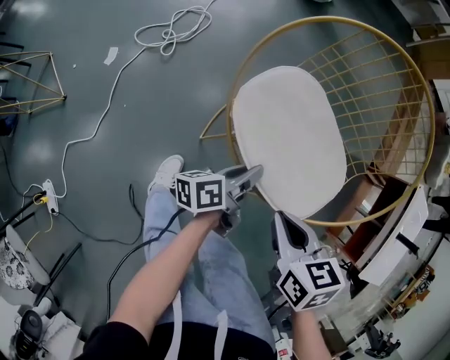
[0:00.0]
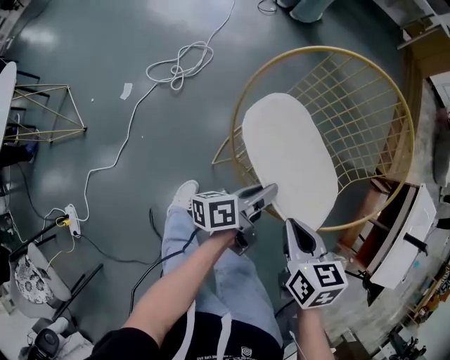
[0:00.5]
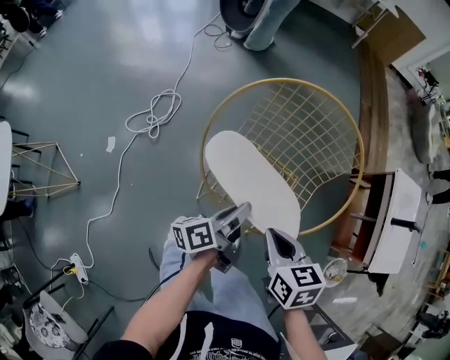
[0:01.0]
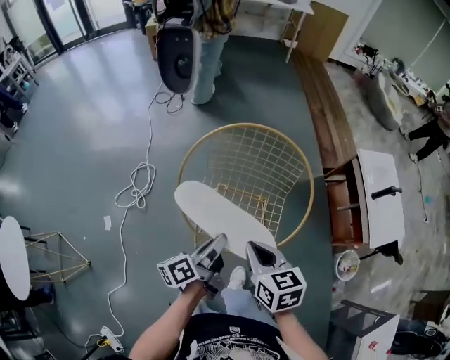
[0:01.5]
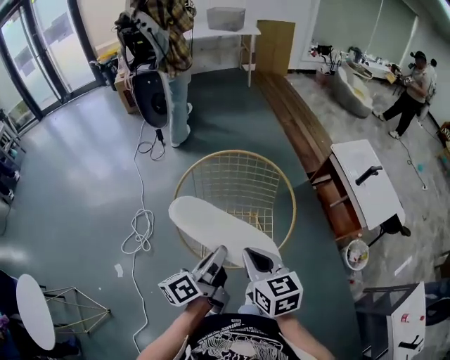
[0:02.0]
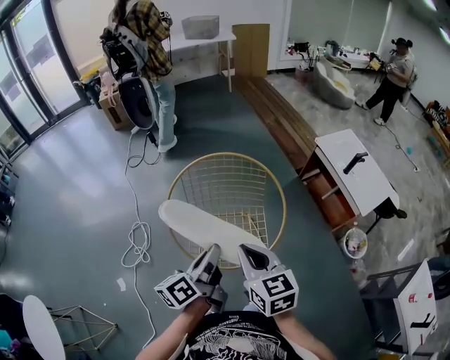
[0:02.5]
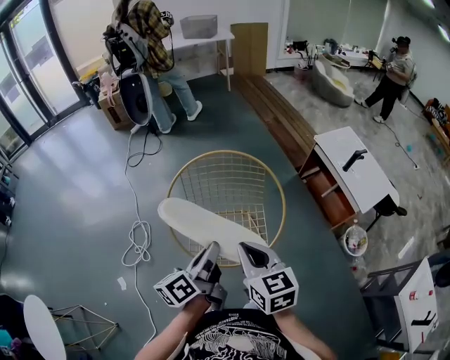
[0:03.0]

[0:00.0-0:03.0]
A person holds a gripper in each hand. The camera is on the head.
0:00.0 to 0:01.5: Both grippers move upward, approximately 20 cm. The right gripper turns by about 30 degrees.
0:01.5 to 0:03.0: The two grippers go about 10 cm upward. The right gripper rotates about 20 degrees.

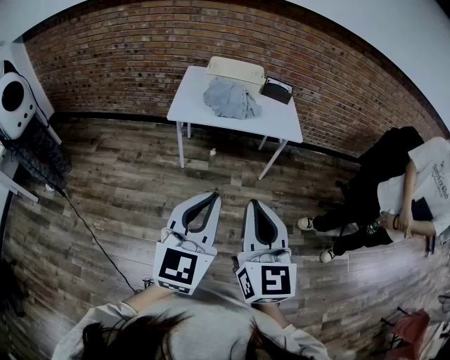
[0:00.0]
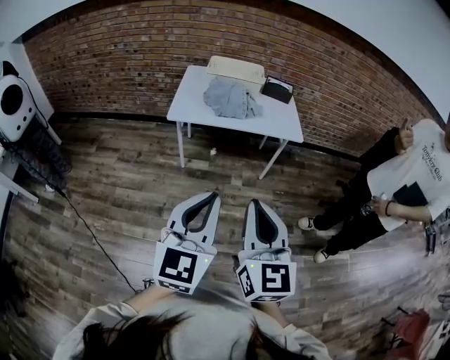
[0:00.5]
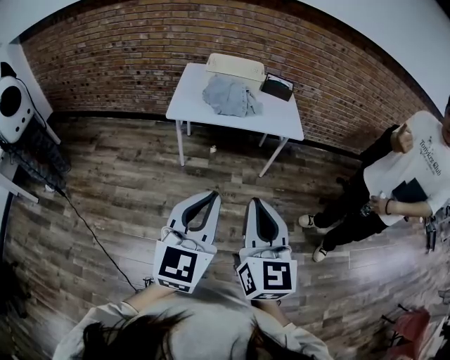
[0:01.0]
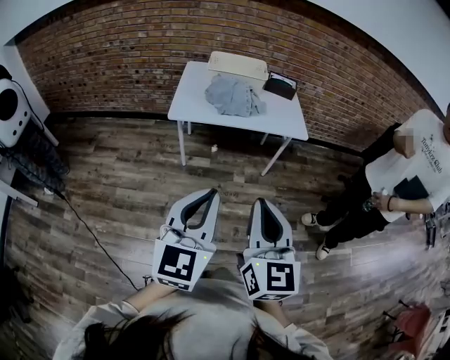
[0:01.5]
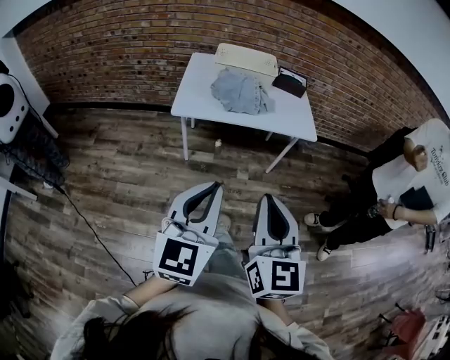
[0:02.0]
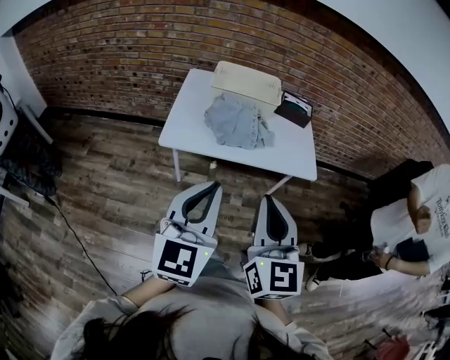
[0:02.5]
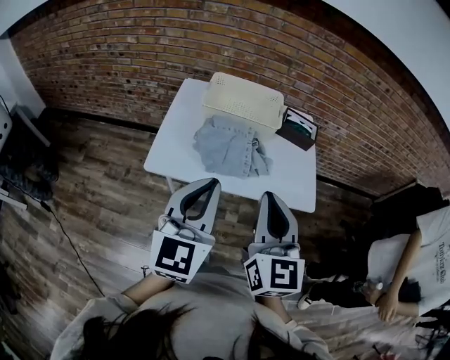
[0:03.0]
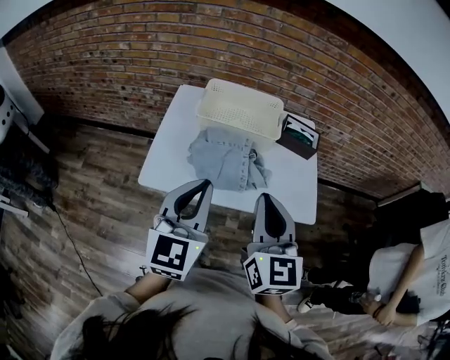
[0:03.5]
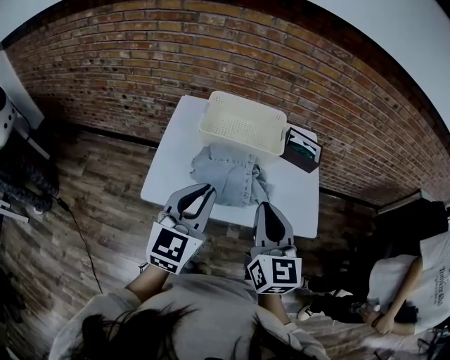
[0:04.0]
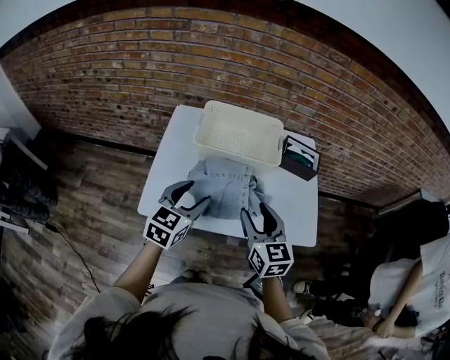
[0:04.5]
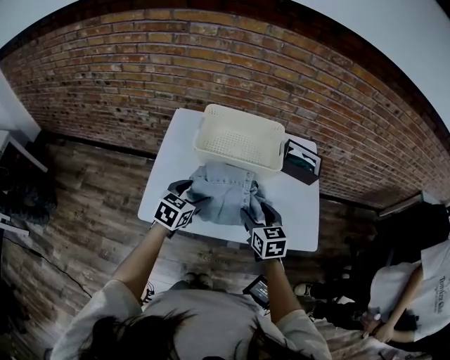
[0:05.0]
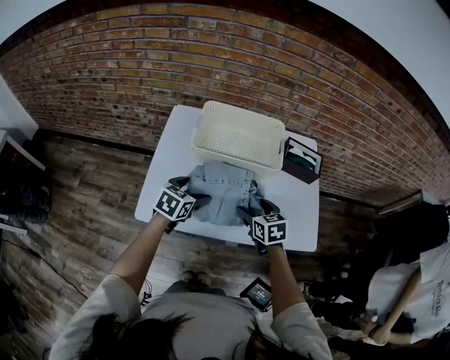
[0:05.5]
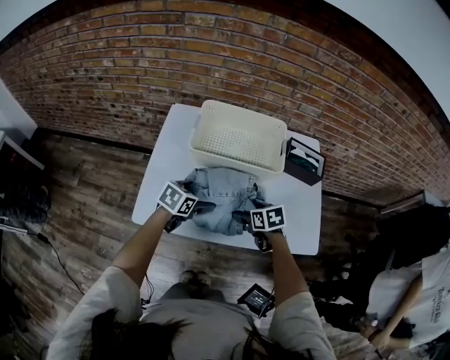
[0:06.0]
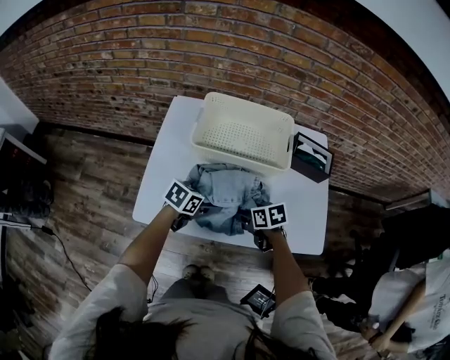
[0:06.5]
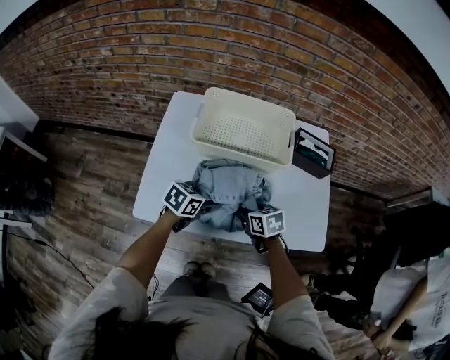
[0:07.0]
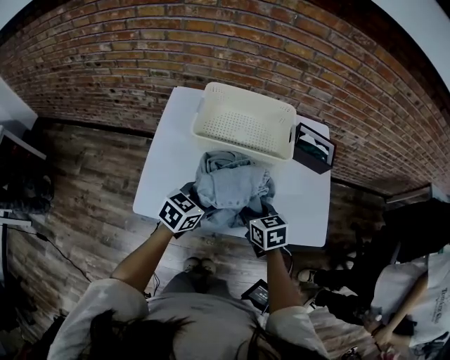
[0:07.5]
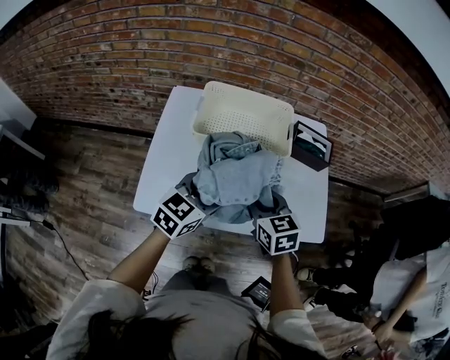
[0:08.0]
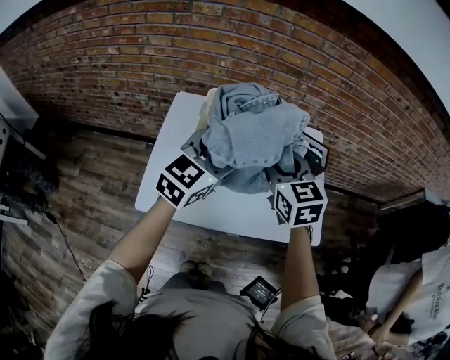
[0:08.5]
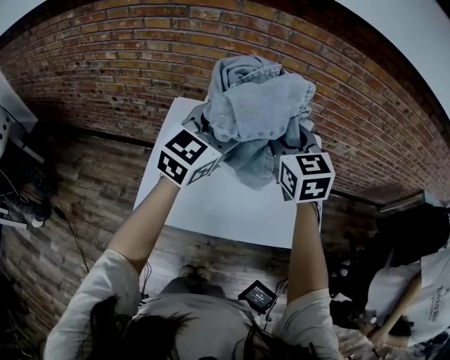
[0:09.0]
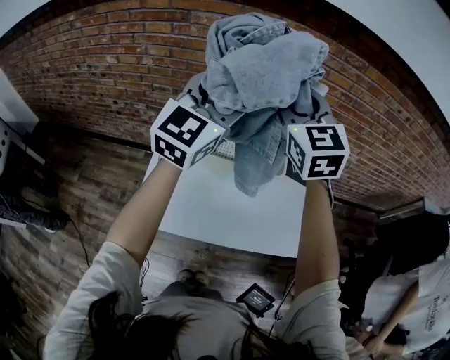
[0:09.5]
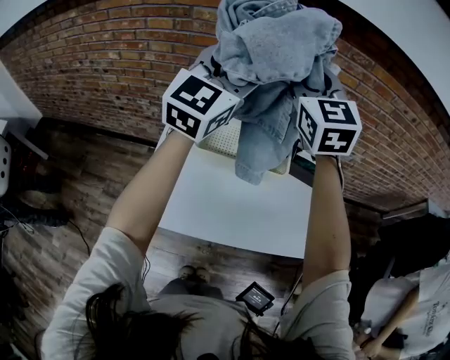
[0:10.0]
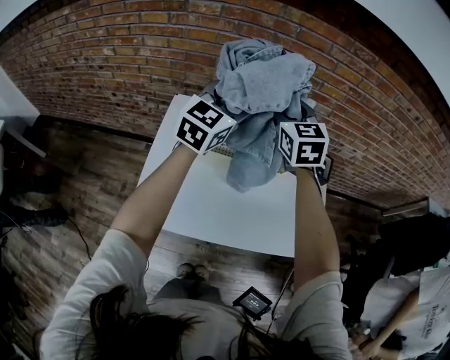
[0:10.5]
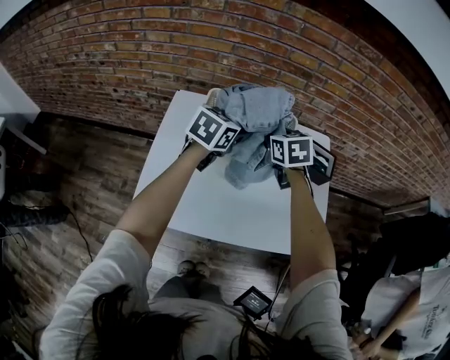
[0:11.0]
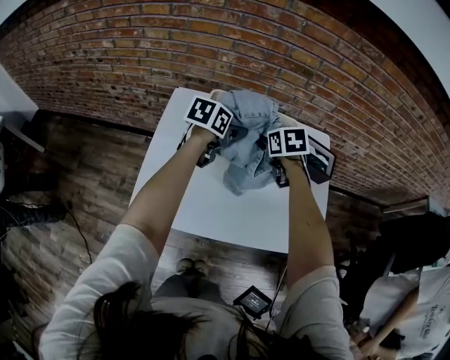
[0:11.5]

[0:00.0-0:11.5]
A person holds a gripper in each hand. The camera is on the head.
0:00.0 to 0:02.0: The left gripper travels forward and to the left by roughly 10 cm. The right gripper heads forward, covering approximately 10 cm.
0:02.0 to 0:04.0: Both grippers are carried forward, roughly 50 cm.
0:04.0 to 0:06.0: The grippers both shift downward and forward by some 30 cm. The right gripper angles its fingers downward, by some 50 degrees, and opens. The left gripper points its fingers approximately 40 degrees further downward, and opens up.
0:06.0 to 0:07.5: The left gripper shifts by some 5 cm, and closes up; the right gripper shifts by approximately 5 cm, and closes up.
0:07.5 to 0:09.5: The right gripper moves upward and forward, some 40 cm, and tips its fingers upward by about 40 degrees; the left gripper moves upward, some 40 cm, and angles its fingers upward, by approximately 40 degrees.
0:09.5 to 0:11.5: The two grippers go roughly 30 cm downward. The right gripper tips its fingers downward by roughly 50 degrees; the left gripper tips its fingers downward by approximately 50 degrees.

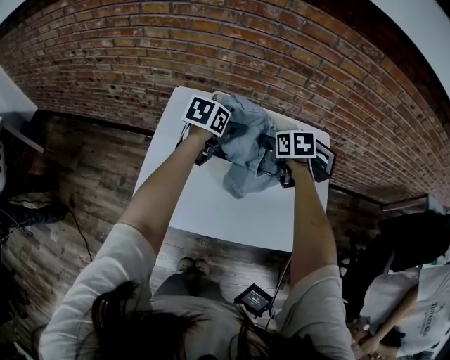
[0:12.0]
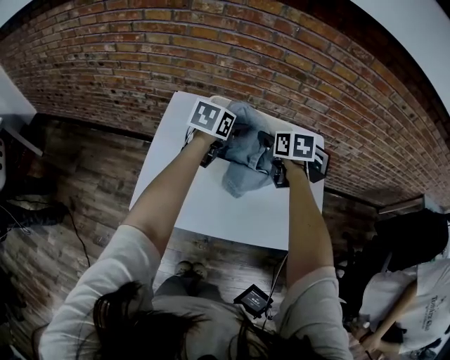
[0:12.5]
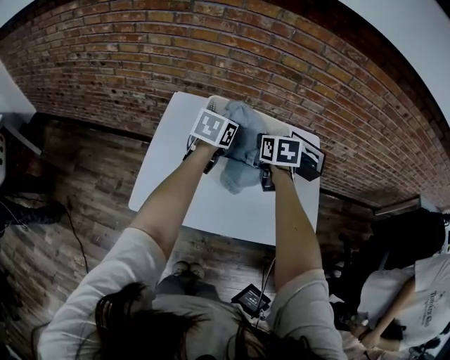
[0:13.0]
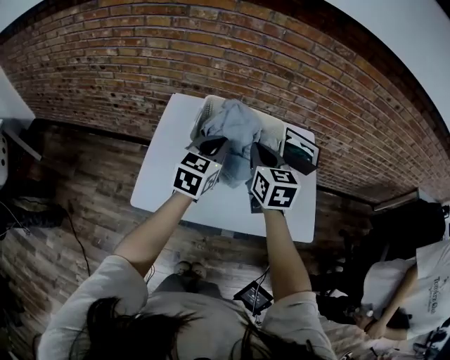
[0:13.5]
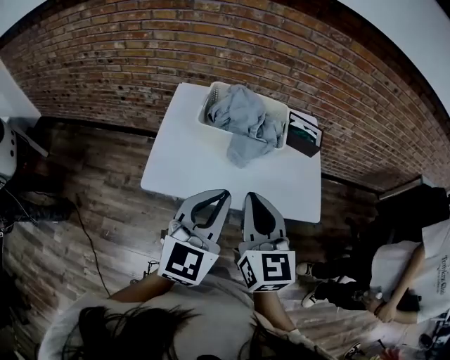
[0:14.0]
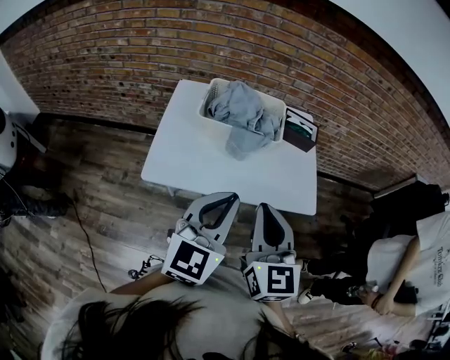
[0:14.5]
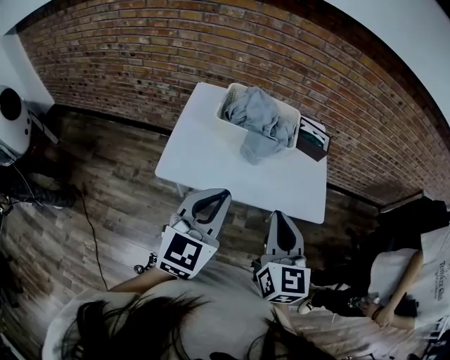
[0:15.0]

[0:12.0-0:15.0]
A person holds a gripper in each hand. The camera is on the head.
0:12.0 to 0:13.5: The grippers both shift backward and upward by approximately 20 cm. The right gripper tilts its fingers approximately 30 degrees upward, and closes up, while the left gripper turns by approximately 30 degrees, and closes up.
0:13.5 to 0:15.0: Both grippers move backward, approximately 30 cm.

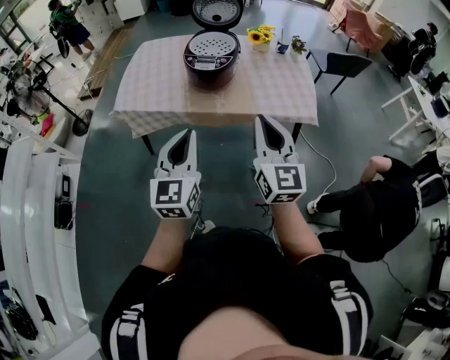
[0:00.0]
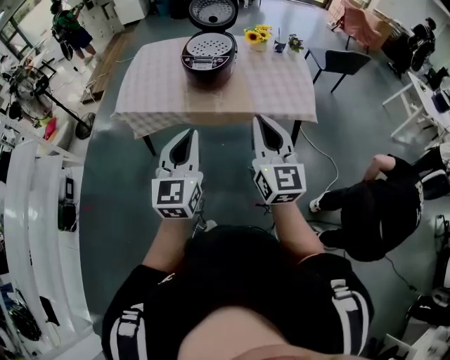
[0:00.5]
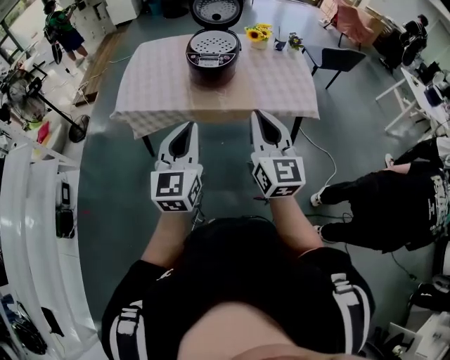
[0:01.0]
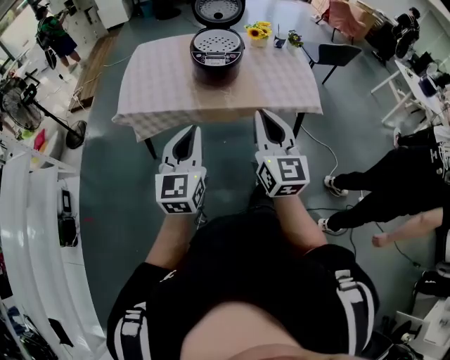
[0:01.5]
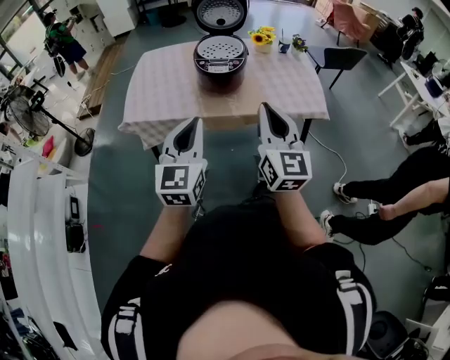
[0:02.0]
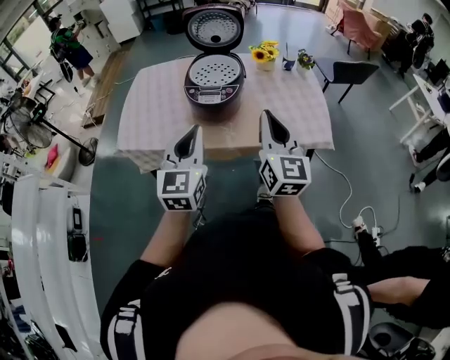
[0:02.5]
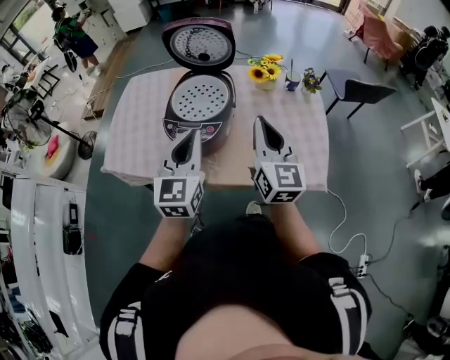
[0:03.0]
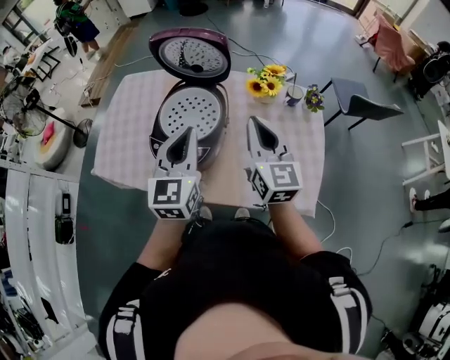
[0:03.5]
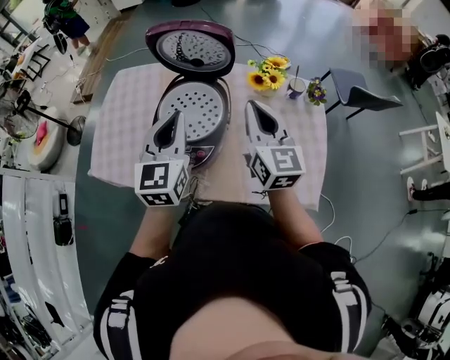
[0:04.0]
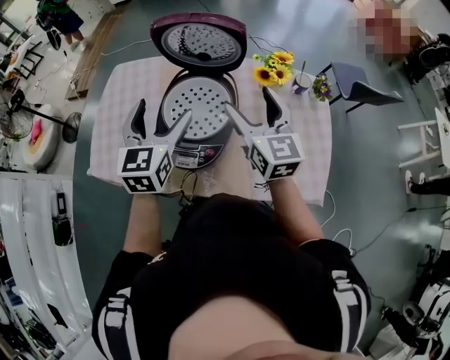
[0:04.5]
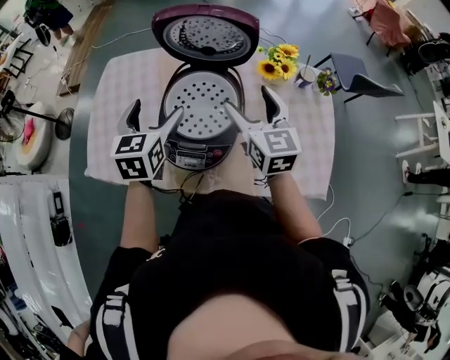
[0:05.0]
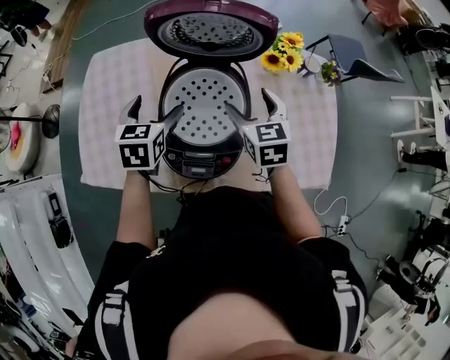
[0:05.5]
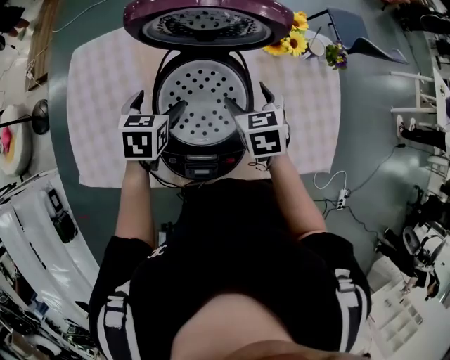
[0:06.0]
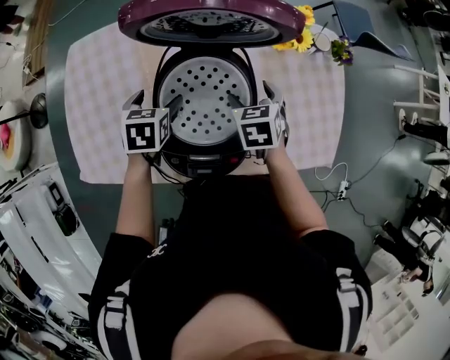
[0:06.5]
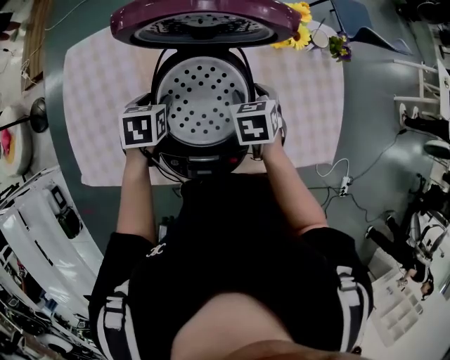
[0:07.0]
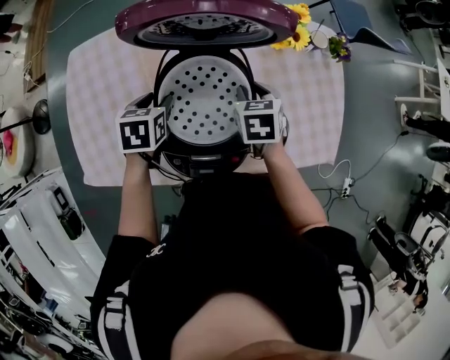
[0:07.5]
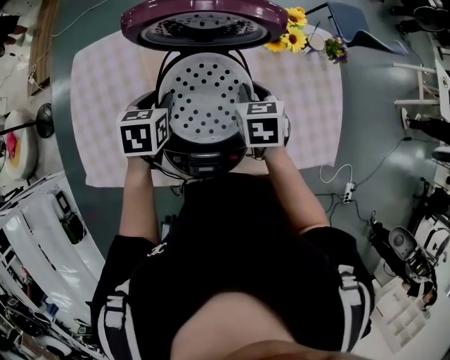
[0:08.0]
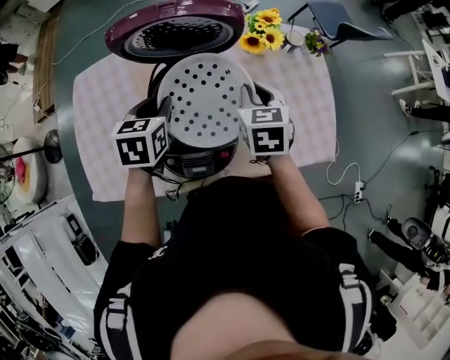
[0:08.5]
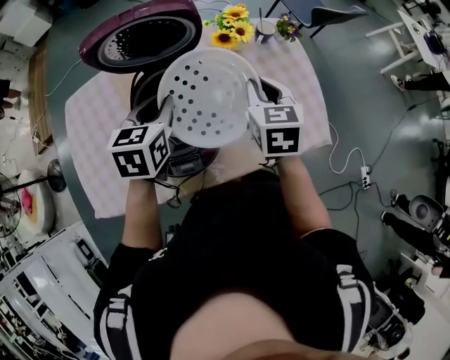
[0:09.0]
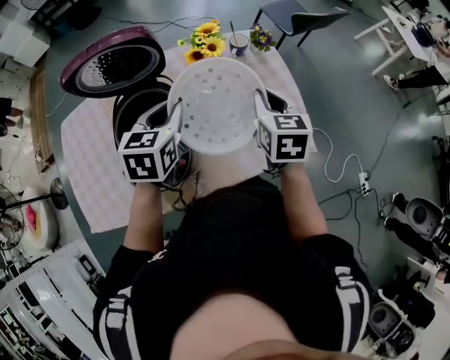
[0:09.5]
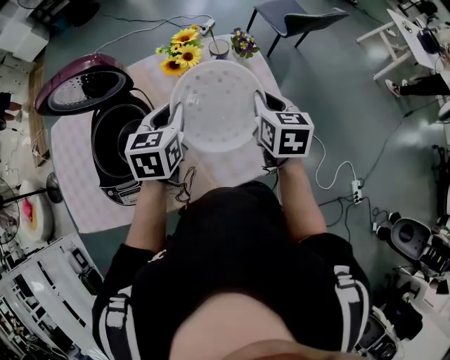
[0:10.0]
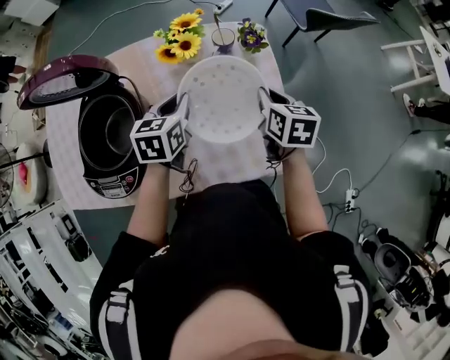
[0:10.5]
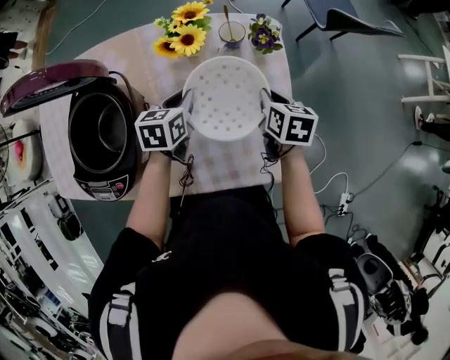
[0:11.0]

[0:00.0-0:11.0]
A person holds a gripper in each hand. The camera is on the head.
0:00.0 to 0:02.0: The grippers both shift to the left by approximately 10 cm.
0:02.0 to 0:03.5: Both grippers are carried forward, approximately 50 cm.
0:03.5 to 0:05.5: The right gripper goes some 25 cm forward, downward and to the left, points its fingers about 30 degrees further downward, and opens its fingers; the left gripper shifts approximately 30 cm forward, to the left and downward, angles its fingers downward, by approximately 30 degrees, and opens up.
0:05.5 to 0:07.5: Both grippers travel together downward, approximately 10 cm. The right gripper turns by approximately 30 degrees, and closes up. Meanwhile the left gripper swivels some 20 degrees, and closes up.
0:07.5 to 0:09.0: The right gripper goes approximately 20 cm upward, to the right and backward, and rotates roughly 20 degrees. Meanwhile the left gripper heads upward and to the right, covering roughly 20 cm, and turns by roughly 30 degrees.
0:09.0 to 0:11.0: The two grippers go approximately 35 cm to the right, downward and forward. The right gripper rotates some 30 degrees.
